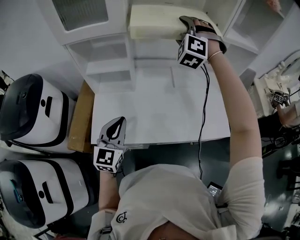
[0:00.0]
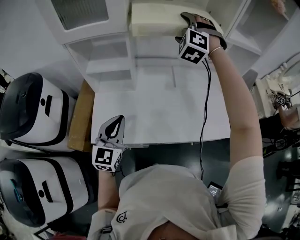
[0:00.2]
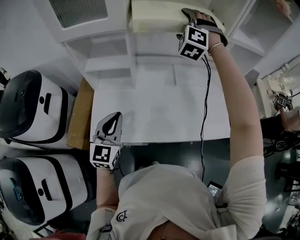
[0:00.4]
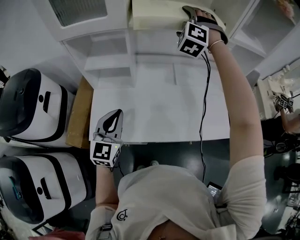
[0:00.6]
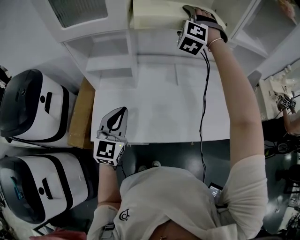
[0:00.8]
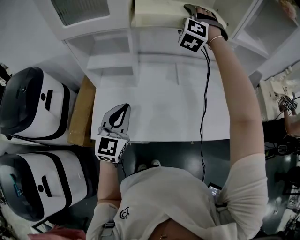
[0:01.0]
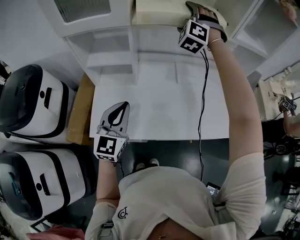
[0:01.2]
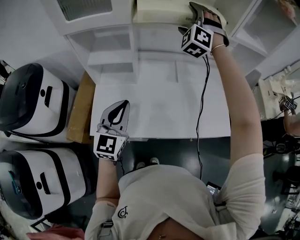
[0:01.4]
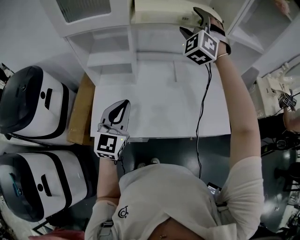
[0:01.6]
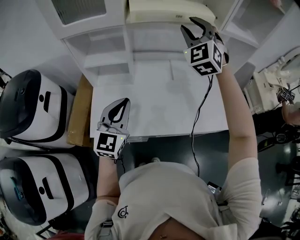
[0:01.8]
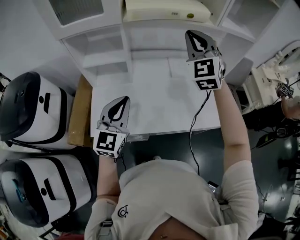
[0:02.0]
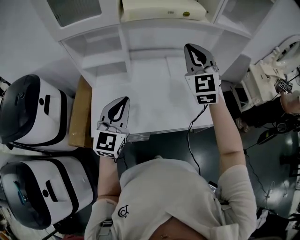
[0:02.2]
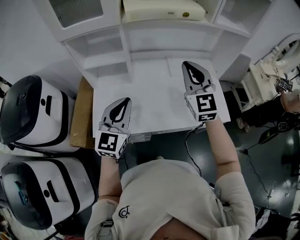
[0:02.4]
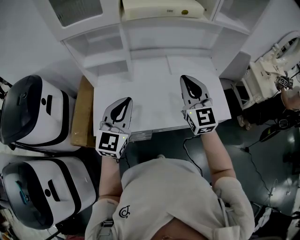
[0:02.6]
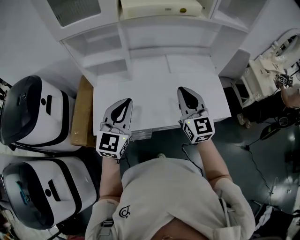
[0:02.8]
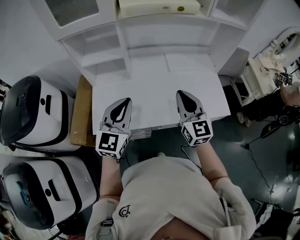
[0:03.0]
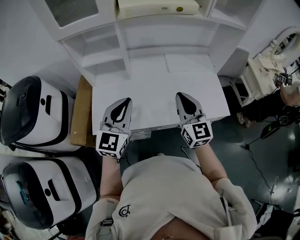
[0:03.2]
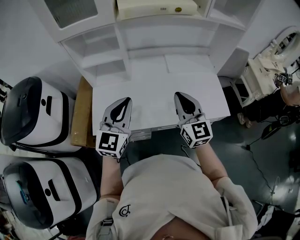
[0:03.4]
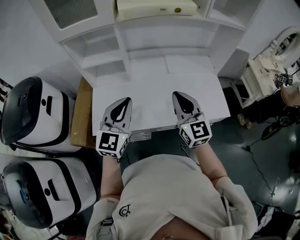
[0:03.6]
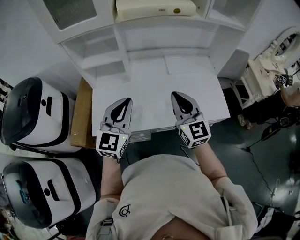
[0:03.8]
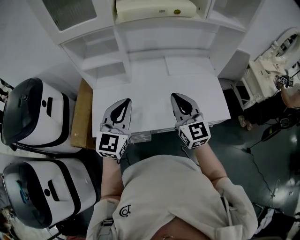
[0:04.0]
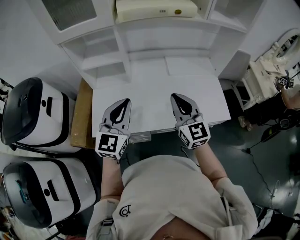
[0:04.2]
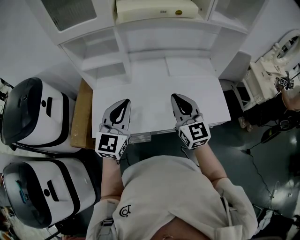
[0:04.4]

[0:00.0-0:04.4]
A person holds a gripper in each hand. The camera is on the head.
0:01.4 to 0:03.0: The right gripper moves backward and downward, roughly 40 cm, rolls clockwise, seen from behind, by some 70 degrees, and closes. The left gripper is displaced backward by approximately 5 cm.
0:03.0 to 0:04.4: The grippers make only small movements.

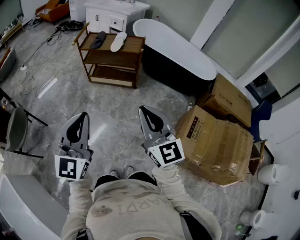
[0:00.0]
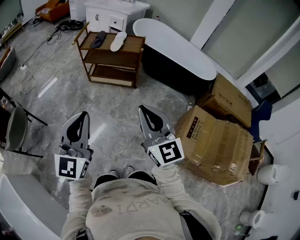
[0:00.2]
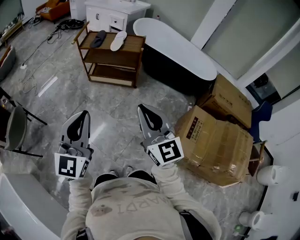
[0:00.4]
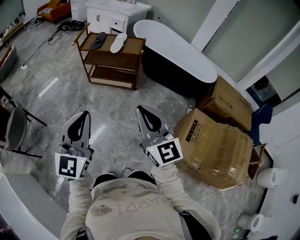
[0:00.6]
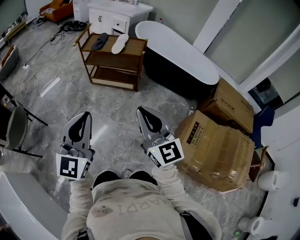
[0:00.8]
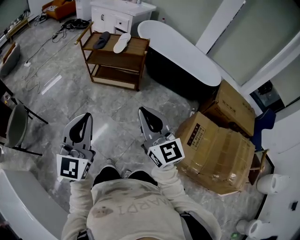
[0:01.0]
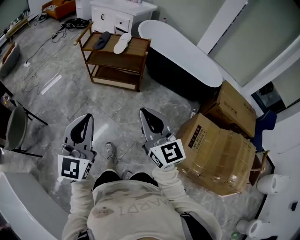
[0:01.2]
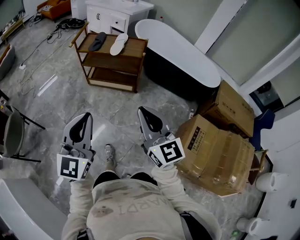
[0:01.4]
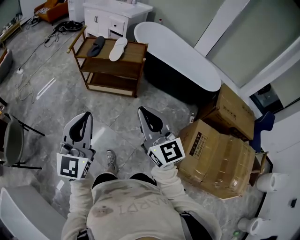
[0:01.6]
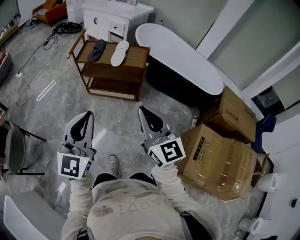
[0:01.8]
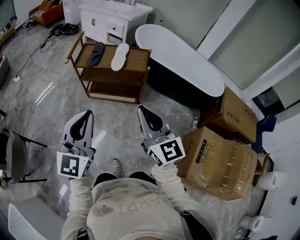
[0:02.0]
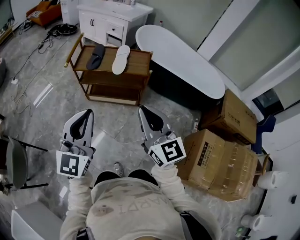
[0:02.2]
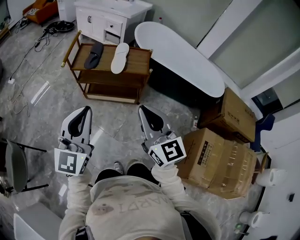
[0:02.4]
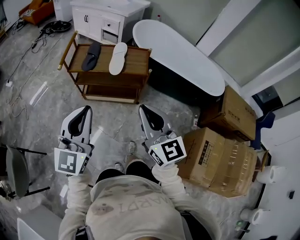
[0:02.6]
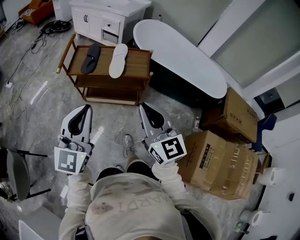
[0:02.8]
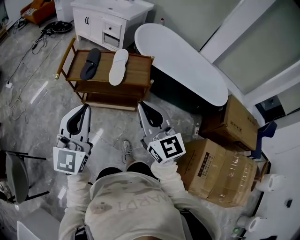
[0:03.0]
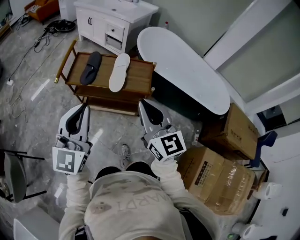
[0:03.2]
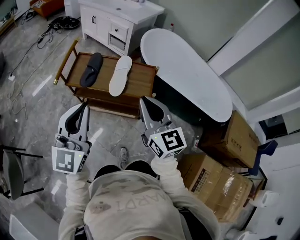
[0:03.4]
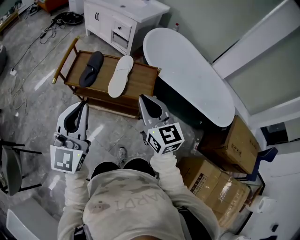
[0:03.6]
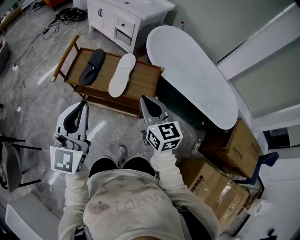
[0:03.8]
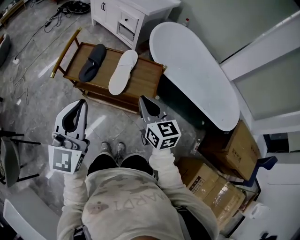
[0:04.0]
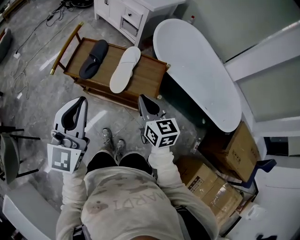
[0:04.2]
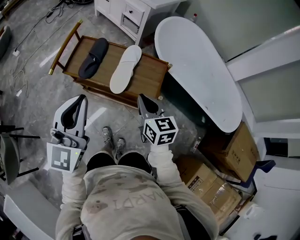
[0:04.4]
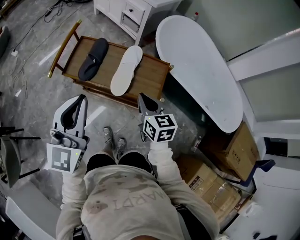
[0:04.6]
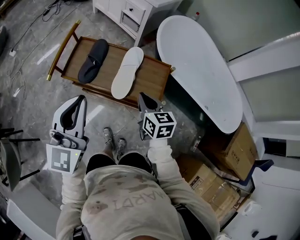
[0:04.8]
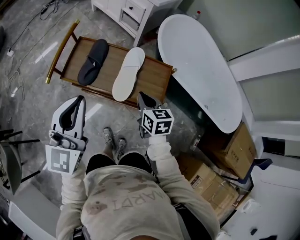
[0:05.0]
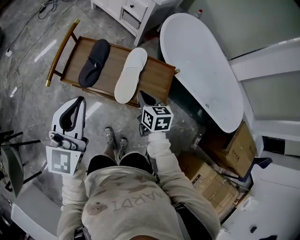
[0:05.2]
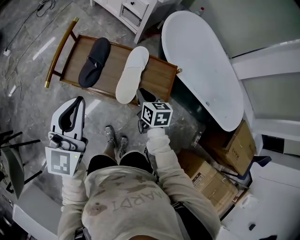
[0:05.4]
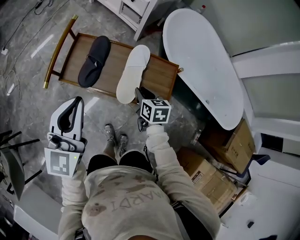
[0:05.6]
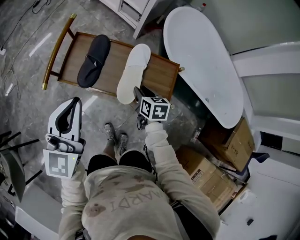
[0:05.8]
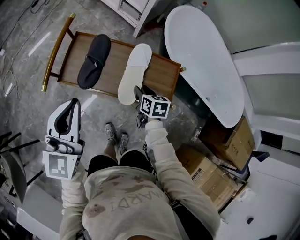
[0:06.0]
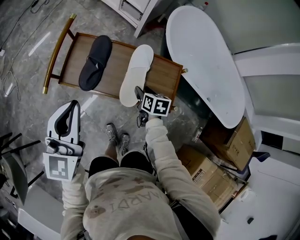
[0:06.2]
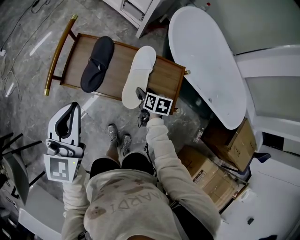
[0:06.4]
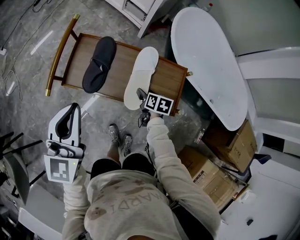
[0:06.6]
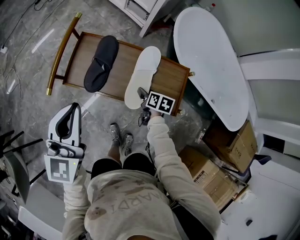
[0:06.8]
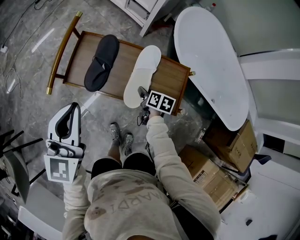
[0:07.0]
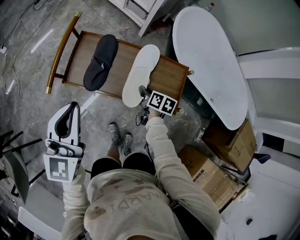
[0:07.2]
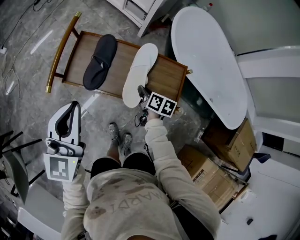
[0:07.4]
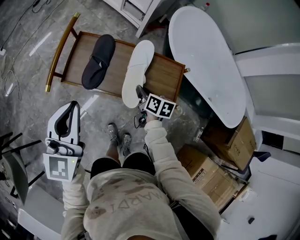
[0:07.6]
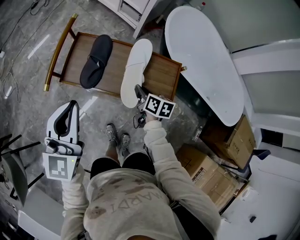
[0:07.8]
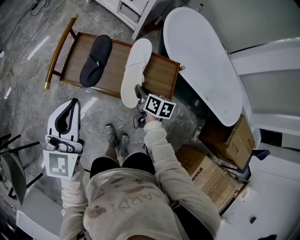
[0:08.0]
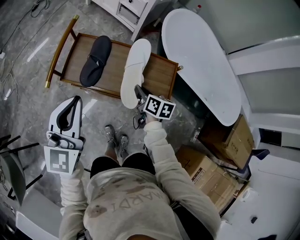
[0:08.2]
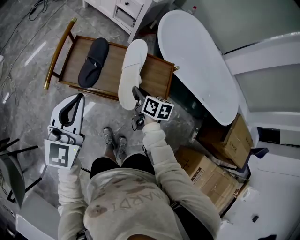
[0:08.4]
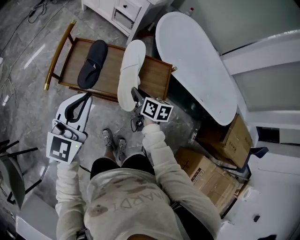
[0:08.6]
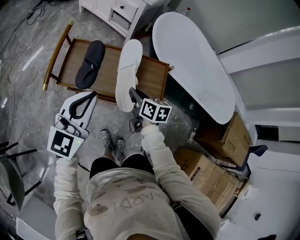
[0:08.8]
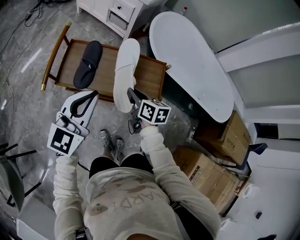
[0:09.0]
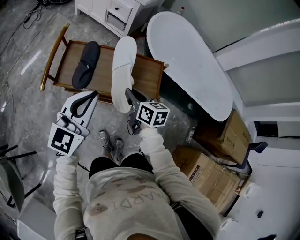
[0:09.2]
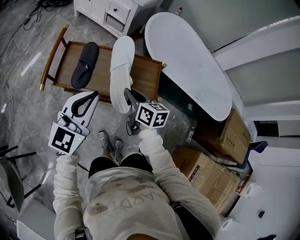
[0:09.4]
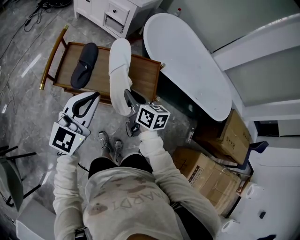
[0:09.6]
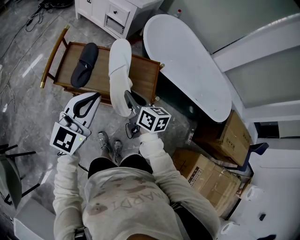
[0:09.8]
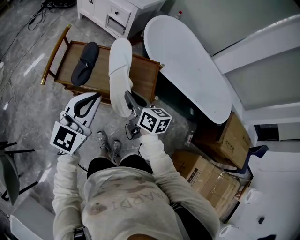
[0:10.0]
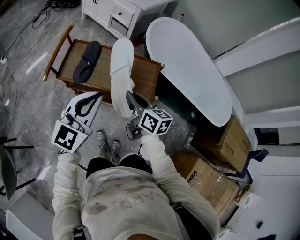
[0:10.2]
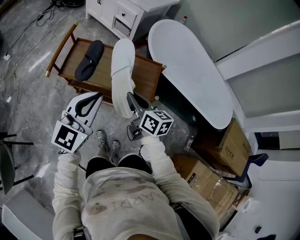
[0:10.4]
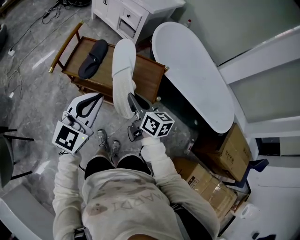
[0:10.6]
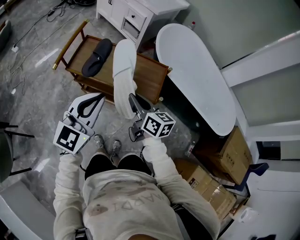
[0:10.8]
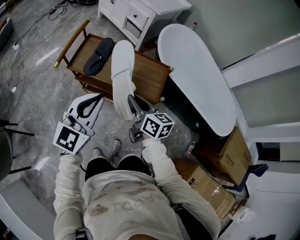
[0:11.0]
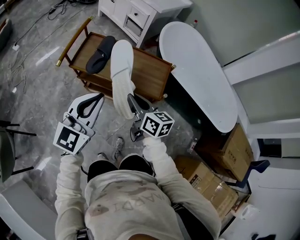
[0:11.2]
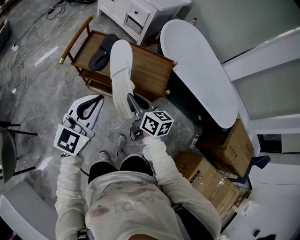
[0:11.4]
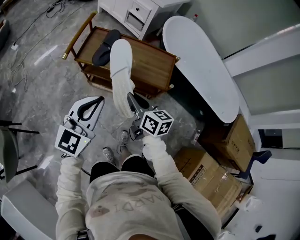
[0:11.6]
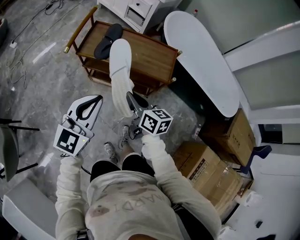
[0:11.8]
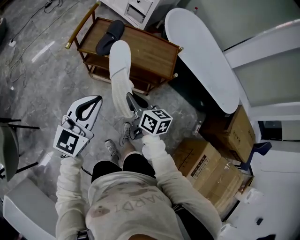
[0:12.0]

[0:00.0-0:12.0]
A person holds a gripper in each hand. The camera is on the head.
0:00.0 to 0:01.6: The two grippers go about 20 cm forward.
0:01.6 to 0:03.0: The grippers both shift forward by roughly 35 cm.
0:03.0 to 0:04.4: The right gripper heads forward and downward, covering roughly 30 cm, and changes its angle by roughly 30 degrees. Meanwhile the left gripper travels forward by some 20 cm.
0:04.4 to 0:06.0: The left gripper moves forward, to the left and downward, some 20 cm. The right gripper is displaced downward and forward by some 25 cm, rotates approximately 30 degrees, and opens its fingers.
0:06.0 to 0:07.6: The right gripper closes.
0:07.6 to 0:09.0: The right gripper goes some 15 cm upward and backward; the left gripper is displaced to the right by roughly 10 cm.
0:09.0 to 0:10.4: The right gripper moves backward and upward, approximately 10 cm; the left gripper shifts approximately 10 cm backward and to the right.
0:10.4 to 0:12.0: Both grippers move backward and to the left, about 20 cm.

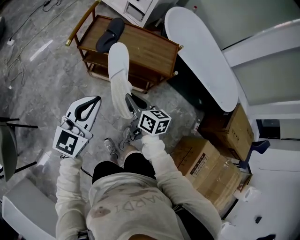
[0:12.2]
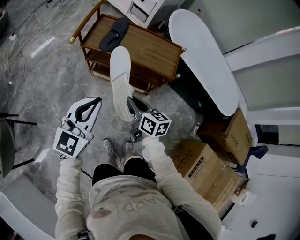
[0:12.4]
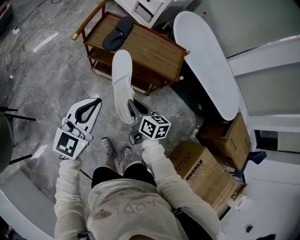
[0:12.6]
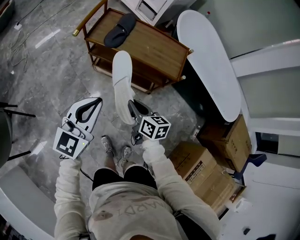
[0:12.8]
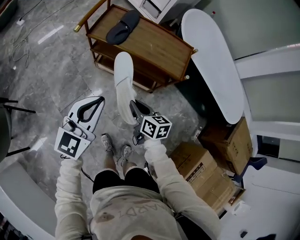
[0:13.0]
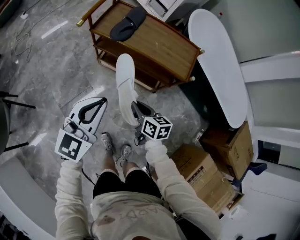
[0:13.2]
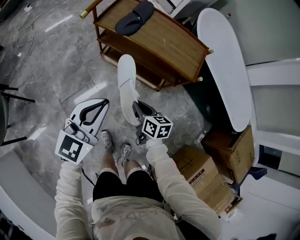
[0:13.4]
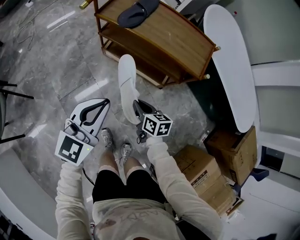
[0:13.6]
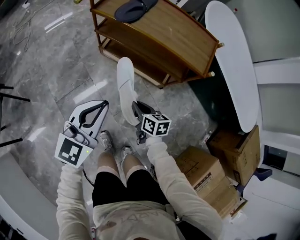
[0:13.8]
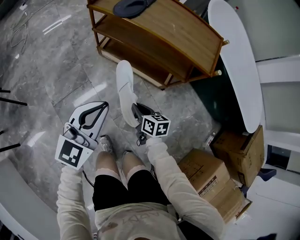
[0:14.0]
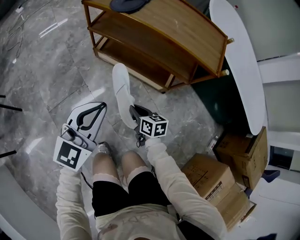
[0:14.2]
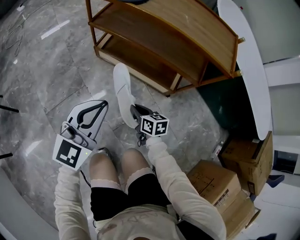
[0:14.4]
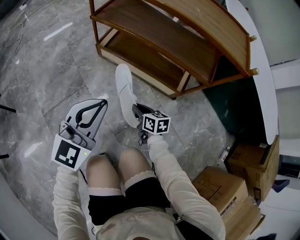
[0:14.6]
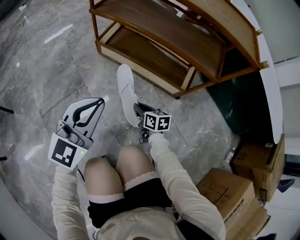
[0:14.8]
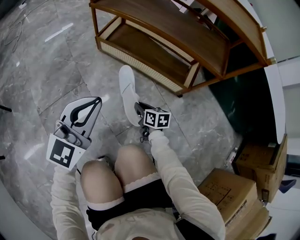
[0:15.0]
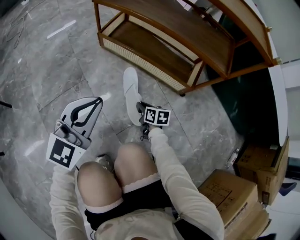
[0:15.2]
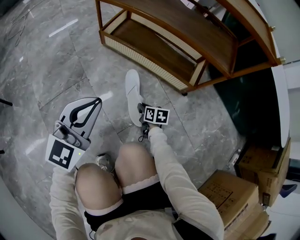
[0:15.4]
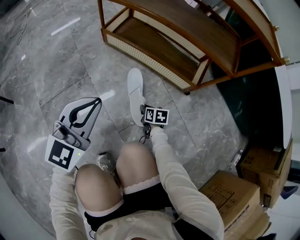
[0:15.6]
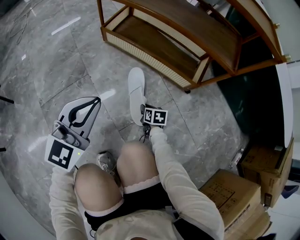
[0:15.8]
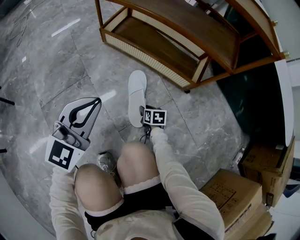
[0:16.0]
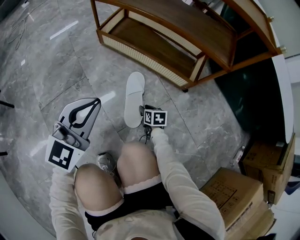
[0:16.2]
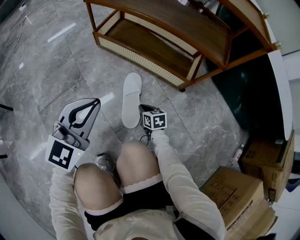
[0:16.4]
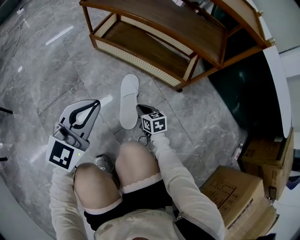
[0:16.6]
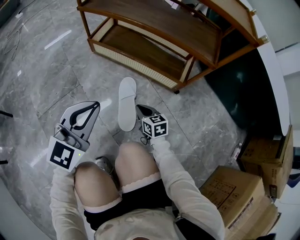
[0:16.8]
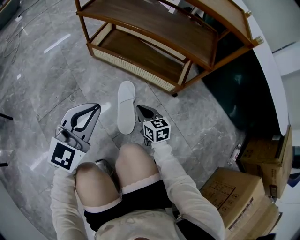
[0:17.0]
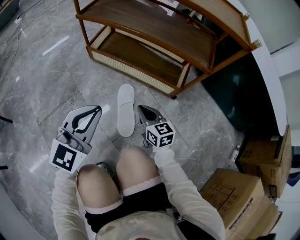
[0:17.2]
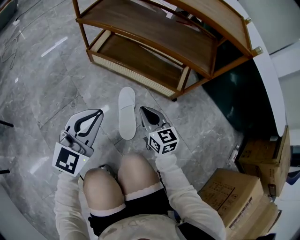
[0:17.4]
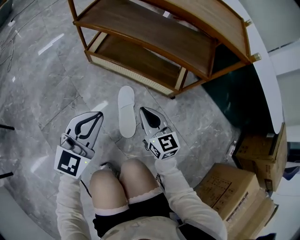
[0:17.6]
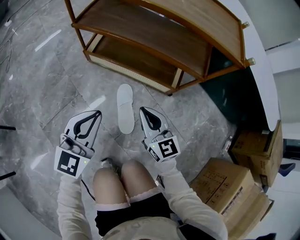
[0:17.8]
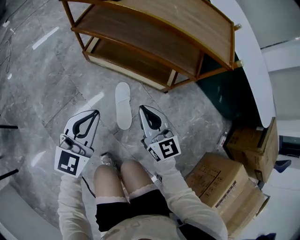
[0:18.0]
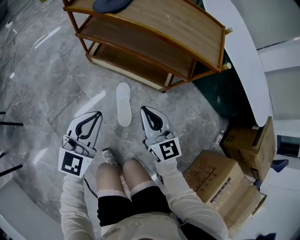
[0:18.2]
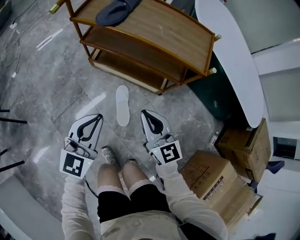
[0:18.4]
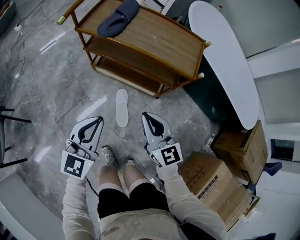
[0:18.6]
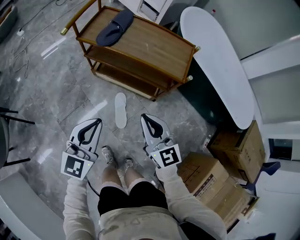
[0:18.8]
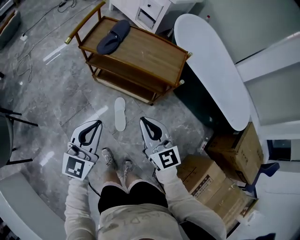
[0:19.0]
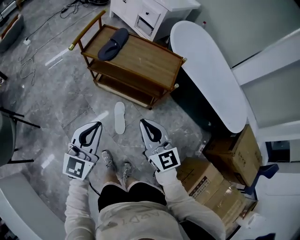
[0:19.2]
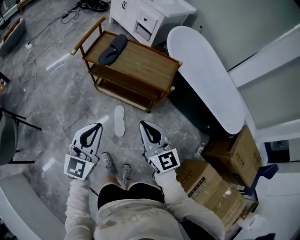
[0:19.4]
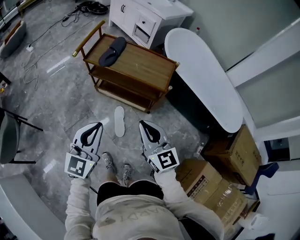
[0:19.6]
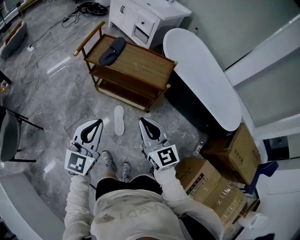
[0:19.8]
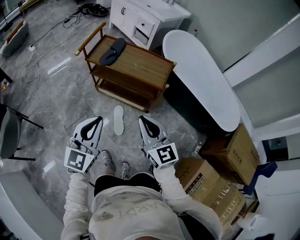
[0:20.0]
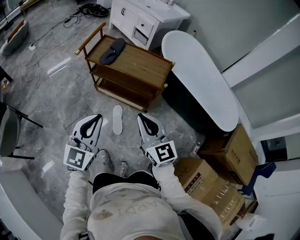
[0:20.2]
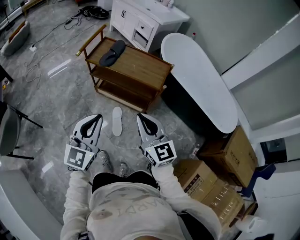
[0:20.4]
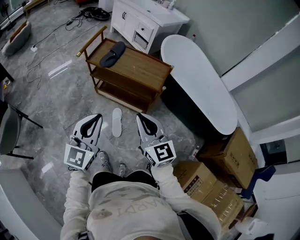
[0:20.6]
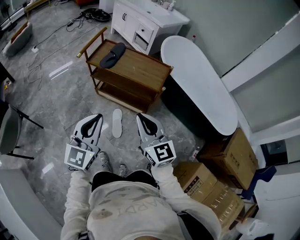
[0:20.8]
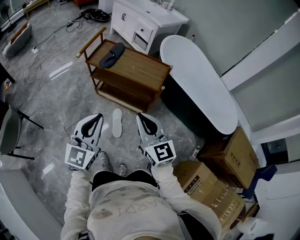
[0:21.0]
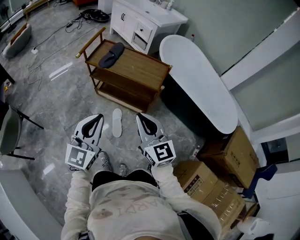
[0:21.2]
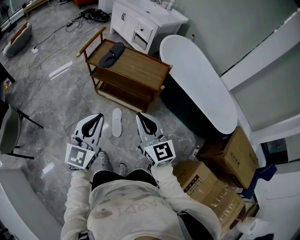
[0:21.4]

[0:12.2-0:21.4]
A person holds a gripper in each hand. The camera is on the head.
0:12.2 to 0:13.8: Both grippers travel together downward, roughly 25 cm.
0:13.8 to 0:15.2: The grippers both shift downward by about 40 cm.
0:15.2 to 0:16.8: The right gripper shifts by approximately 5 cm, turns by about 20 degrees, and opens, then closes again.
0:16.8 to 0:18.4: The left gripper moves upward, roughly 25 cm. Meanwhile the right gripper goes roughly 50 cm upward, and swivels about 30 degrees.
0:18.4 to 0:19.8: The right gripper heads upward, covering some 35 cm; the left gripper moves upward and backward, about 35 cm.
0:19.8 to 0:21.4: The right gripper goes about 5 cm upward. The left gripper shifts by roughly 5 cm.
